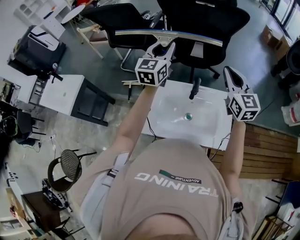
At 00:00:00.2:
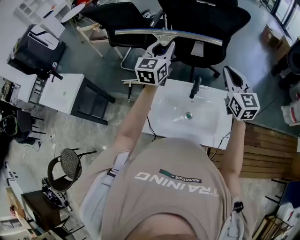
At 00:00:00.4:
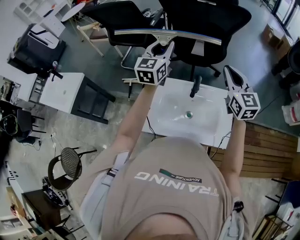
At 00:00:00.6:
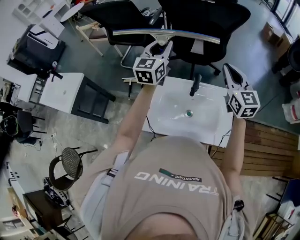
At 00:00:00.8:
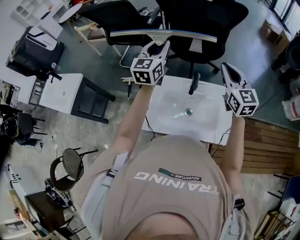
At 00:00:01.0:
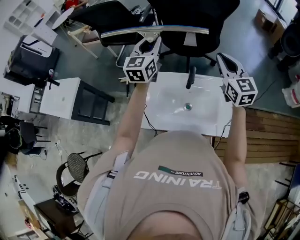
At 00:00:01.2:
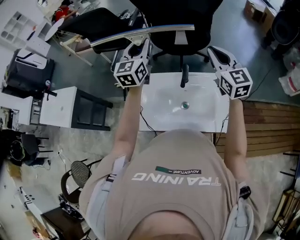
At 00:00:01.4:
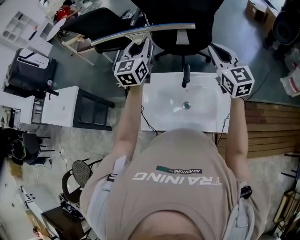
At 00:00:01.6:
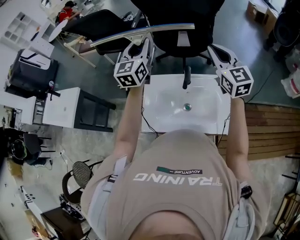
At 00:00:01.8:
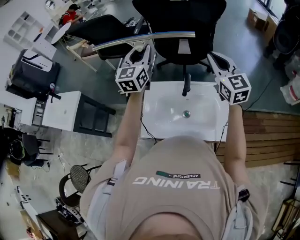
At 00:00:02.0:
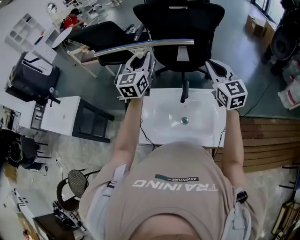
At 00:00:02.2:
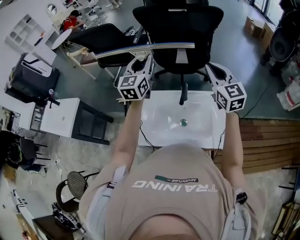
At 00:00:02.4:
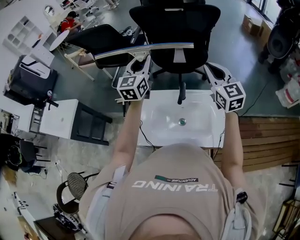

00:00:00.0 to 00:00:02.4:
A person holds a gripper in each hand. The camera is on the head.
00:00:00.0 to 00:00:02.4: The grippers stay close to where they were, moving slightly.

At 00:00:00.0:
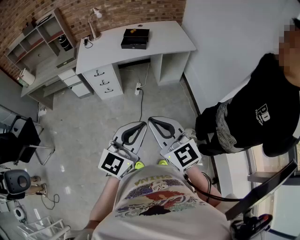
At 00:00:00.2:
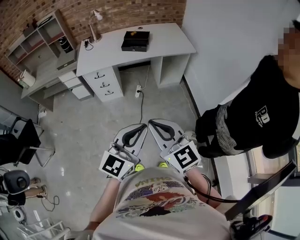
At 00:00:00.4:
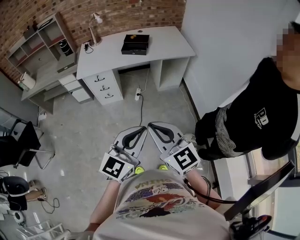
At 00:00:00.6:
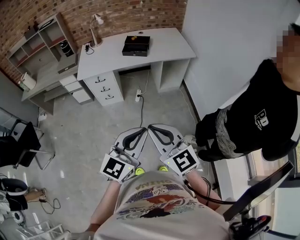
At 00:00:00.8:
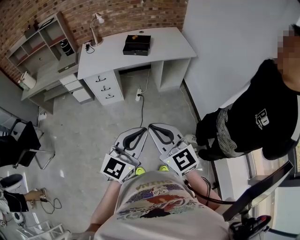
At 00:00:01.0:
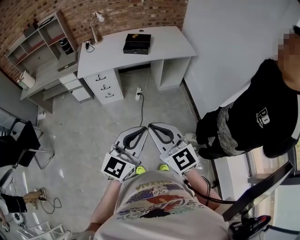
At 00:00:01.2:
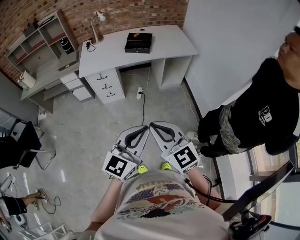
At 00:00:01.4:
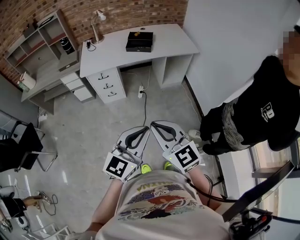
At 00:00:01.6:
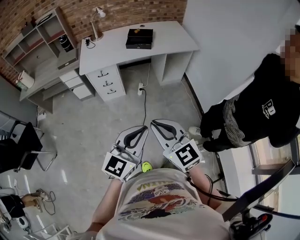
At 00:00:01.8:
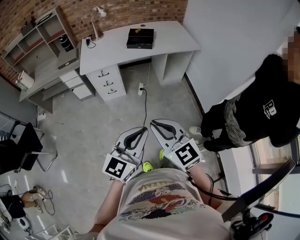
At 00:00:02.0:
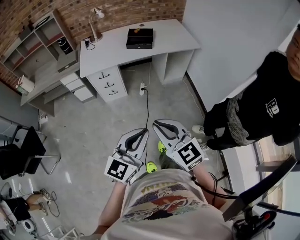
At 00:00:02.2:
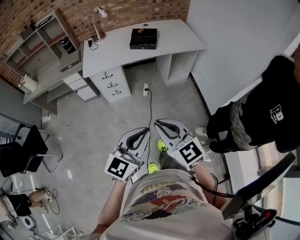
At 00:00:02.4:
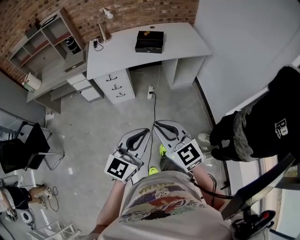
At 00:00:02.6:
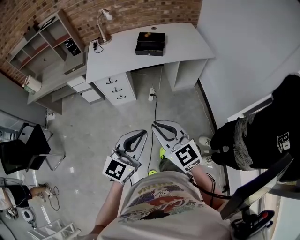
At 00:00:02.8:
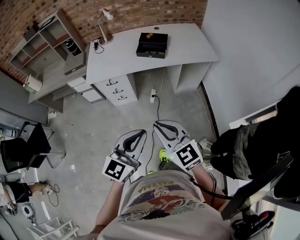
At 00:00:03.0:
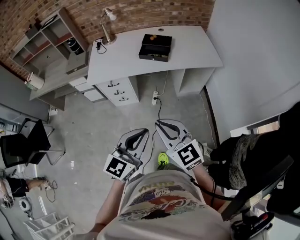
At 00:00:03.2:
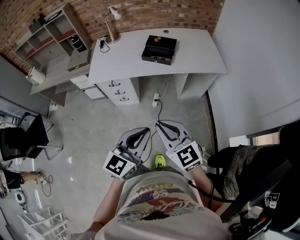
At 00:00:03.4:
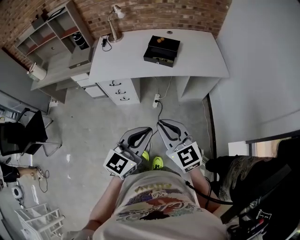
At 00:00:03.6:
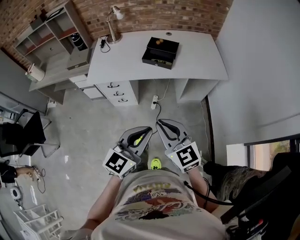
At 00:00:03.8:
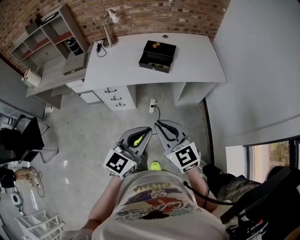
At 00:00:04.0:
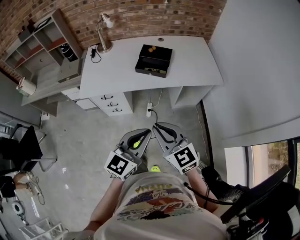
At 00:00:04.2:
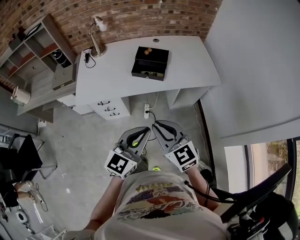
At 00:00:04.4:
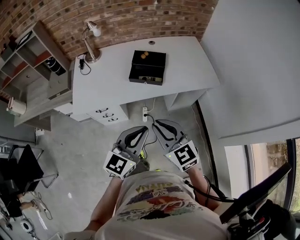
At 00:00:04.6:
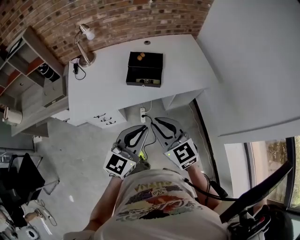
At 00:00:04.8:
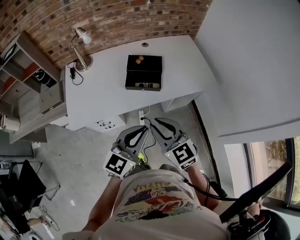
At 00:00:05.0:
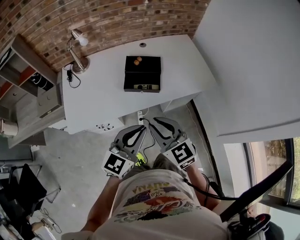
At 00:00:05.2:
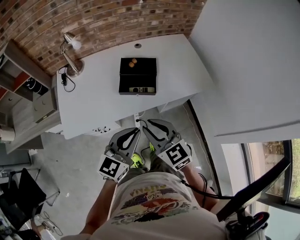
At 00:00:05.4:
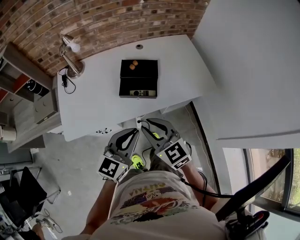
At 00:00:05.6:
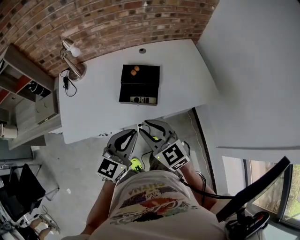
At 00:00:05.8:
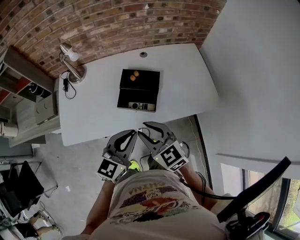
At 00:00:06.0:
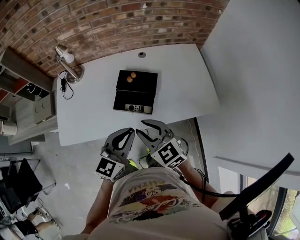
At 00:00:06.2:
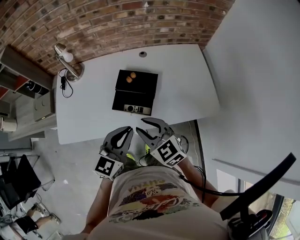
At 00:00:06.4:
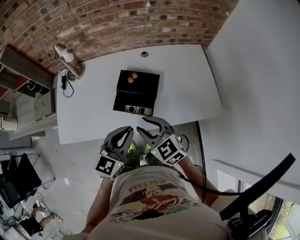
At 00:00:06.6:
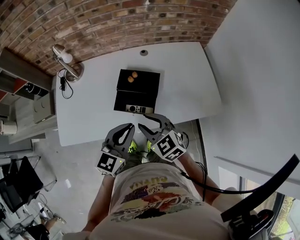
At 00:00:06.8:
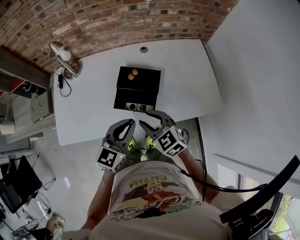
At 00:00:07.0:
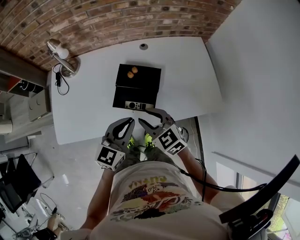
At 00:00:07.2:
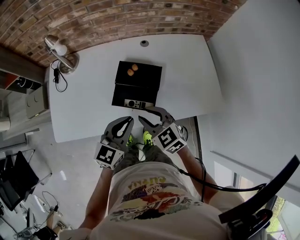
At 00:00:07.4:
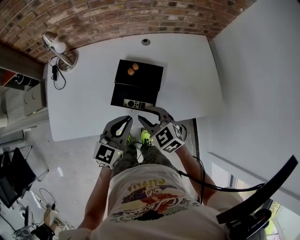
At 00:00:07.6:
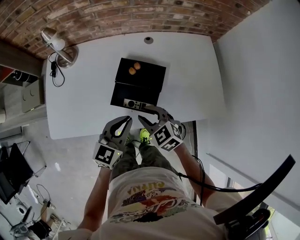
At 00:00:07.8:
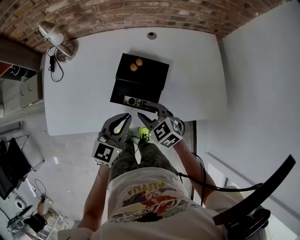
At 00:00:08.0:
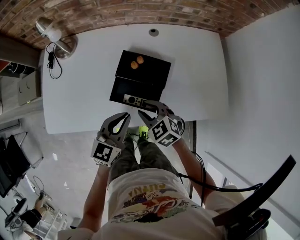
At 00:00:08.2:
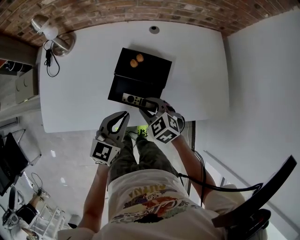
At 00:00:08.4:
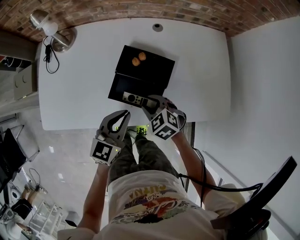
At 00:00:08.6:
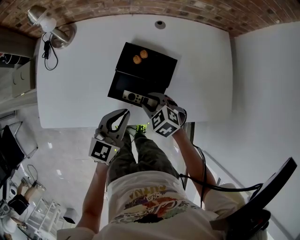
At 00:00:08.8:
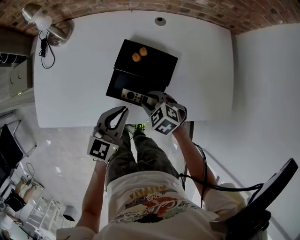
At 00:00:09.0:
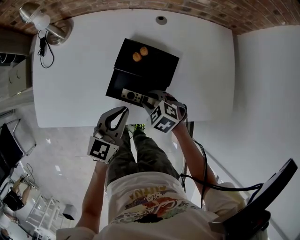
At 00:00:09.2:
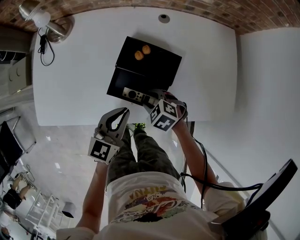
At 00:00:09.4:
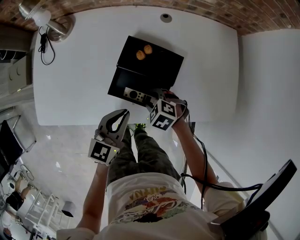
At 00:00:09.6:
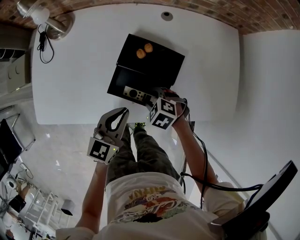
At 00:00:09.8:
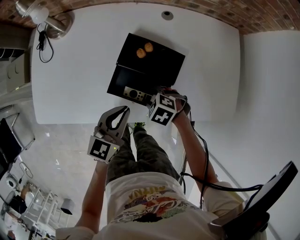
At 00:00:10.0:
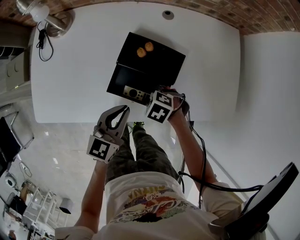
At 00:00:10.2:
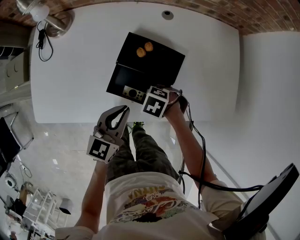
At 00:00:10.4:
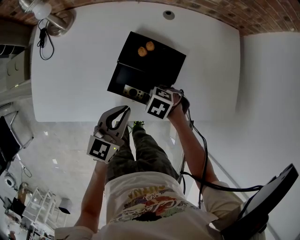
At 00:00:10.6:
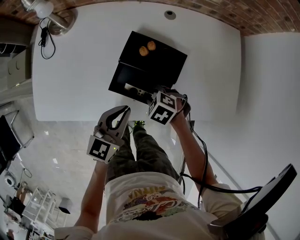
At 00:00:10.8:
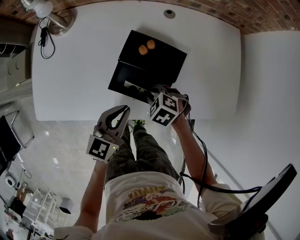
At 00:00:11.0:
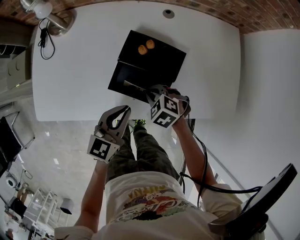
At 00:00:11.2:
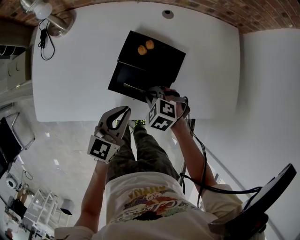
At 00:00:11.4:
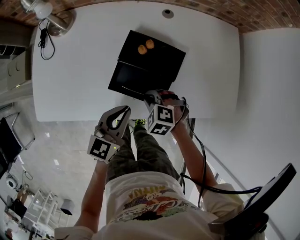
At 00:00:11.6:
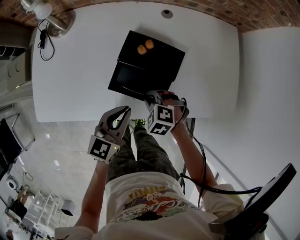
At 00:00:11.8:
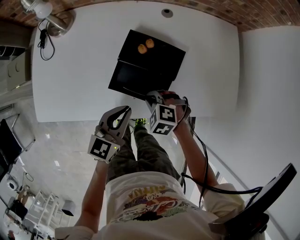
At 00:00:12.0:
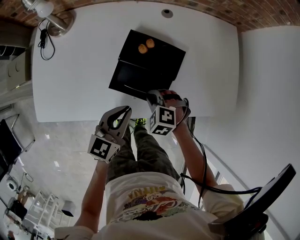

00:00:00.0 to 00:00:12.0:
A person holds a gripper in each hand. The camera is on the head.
00:00:00.0 to 00:00:01.6: The two grippers go roughly 10 cm to the left.
00:00:01.6 to 00:00:03.0: Both grippers travel together forward, approximately 20 cm.
00:00:03.0 to 00:00:04.4: Both grippers travel together forward, some 25 cm.
00:00:04.4 to 00:00:06.0: Both grippers move forward, some 25 cm.
00:00:06.0 to 00:00:07.6: The left gripper goes about 10 cm forward and downward. The right gripper moves downward and forward, about 15 cm.
00:00:07.6 to 00:00:09.0: The left gripper moves downward, about 5 cm. Meanwhile the right gripper moves downward, some 15 cm, and swivels approximately 30 degrees.
00:00:09.0 to 00:00:10.4: The right gripper turns by about 20 degrees.
00:00:10.4 to 00:00:12.0: The right gripper turns by approximately 30 degrees, and closes its fingers.

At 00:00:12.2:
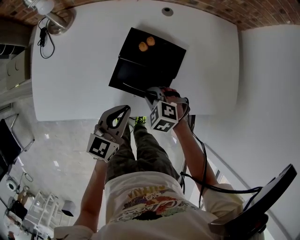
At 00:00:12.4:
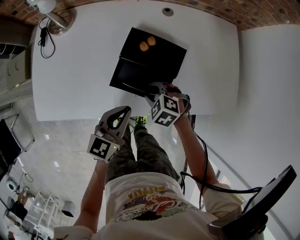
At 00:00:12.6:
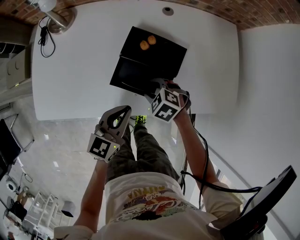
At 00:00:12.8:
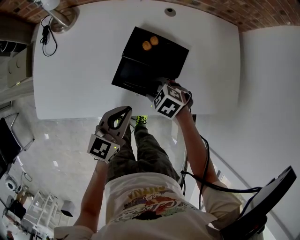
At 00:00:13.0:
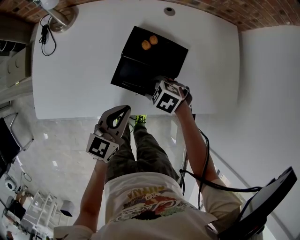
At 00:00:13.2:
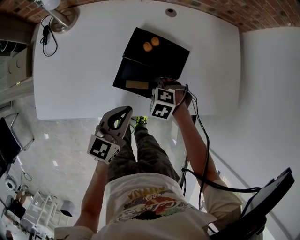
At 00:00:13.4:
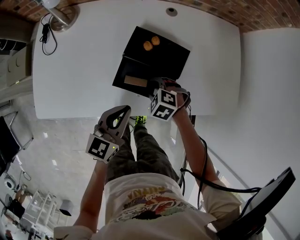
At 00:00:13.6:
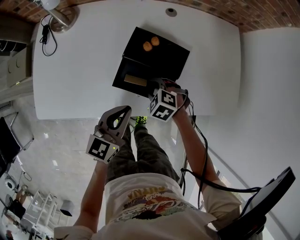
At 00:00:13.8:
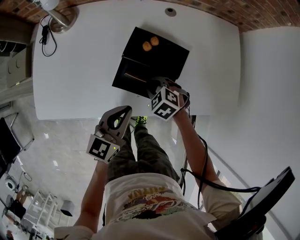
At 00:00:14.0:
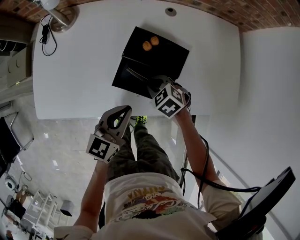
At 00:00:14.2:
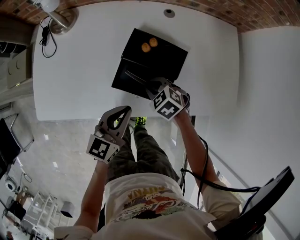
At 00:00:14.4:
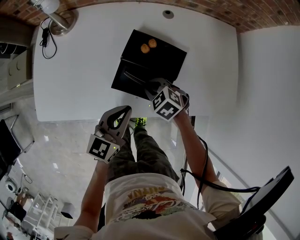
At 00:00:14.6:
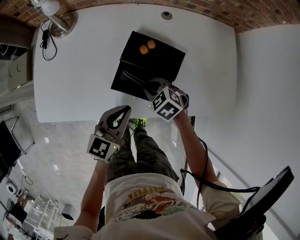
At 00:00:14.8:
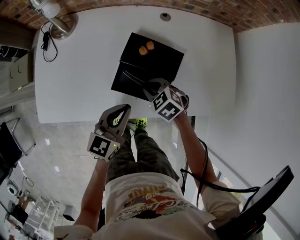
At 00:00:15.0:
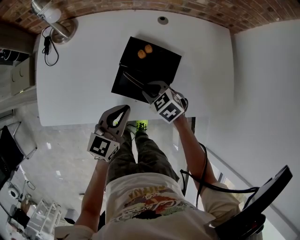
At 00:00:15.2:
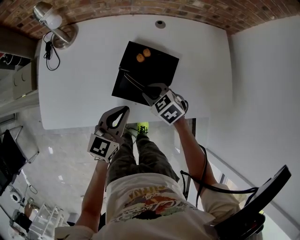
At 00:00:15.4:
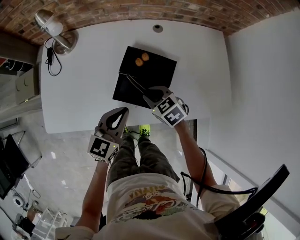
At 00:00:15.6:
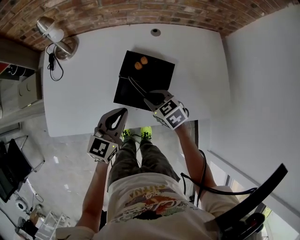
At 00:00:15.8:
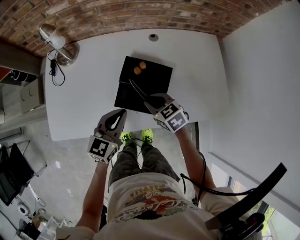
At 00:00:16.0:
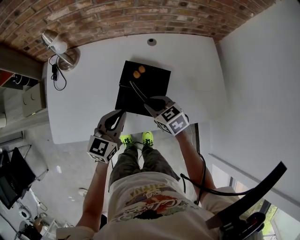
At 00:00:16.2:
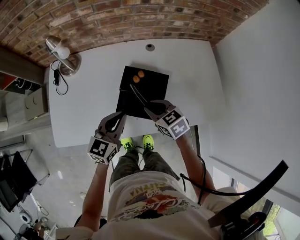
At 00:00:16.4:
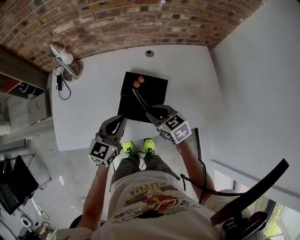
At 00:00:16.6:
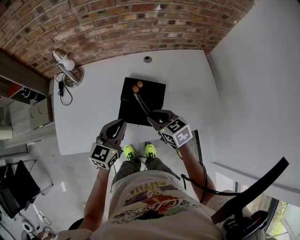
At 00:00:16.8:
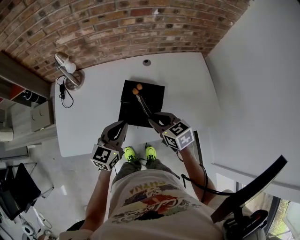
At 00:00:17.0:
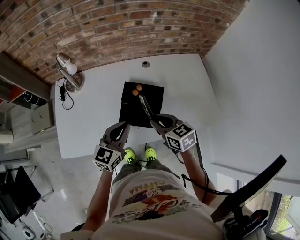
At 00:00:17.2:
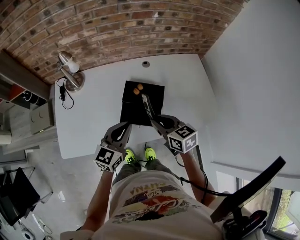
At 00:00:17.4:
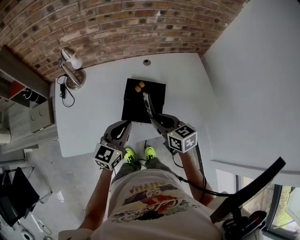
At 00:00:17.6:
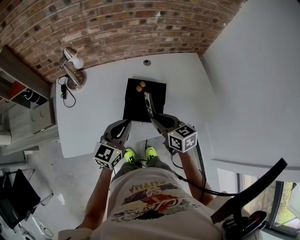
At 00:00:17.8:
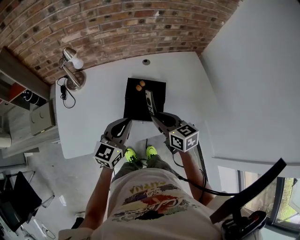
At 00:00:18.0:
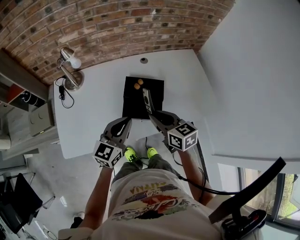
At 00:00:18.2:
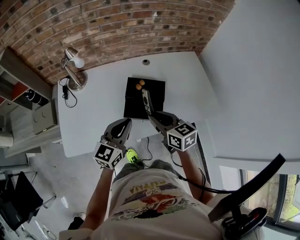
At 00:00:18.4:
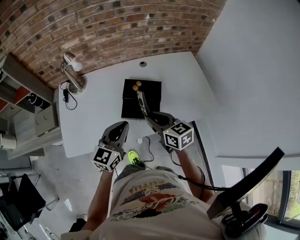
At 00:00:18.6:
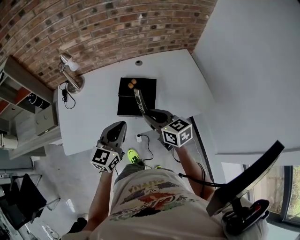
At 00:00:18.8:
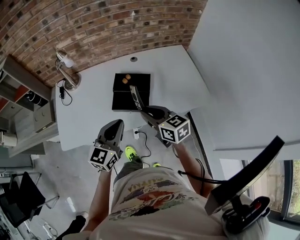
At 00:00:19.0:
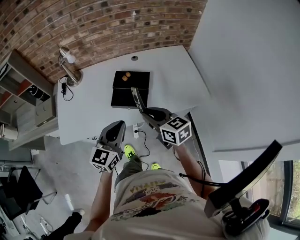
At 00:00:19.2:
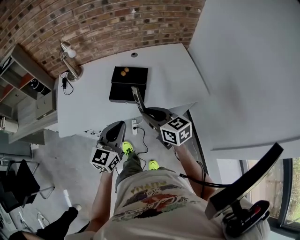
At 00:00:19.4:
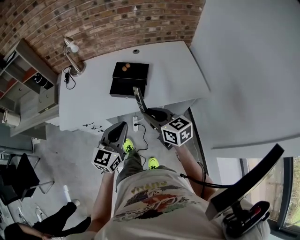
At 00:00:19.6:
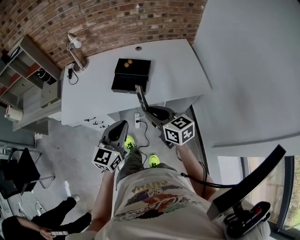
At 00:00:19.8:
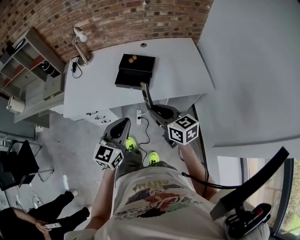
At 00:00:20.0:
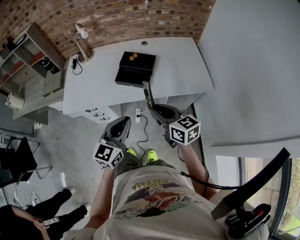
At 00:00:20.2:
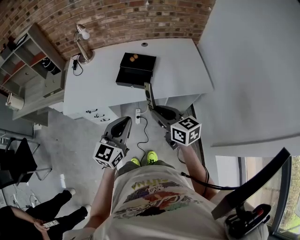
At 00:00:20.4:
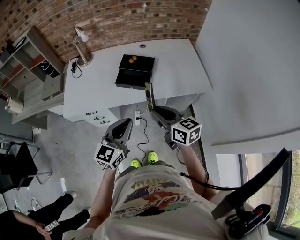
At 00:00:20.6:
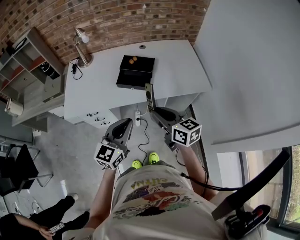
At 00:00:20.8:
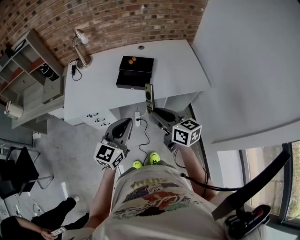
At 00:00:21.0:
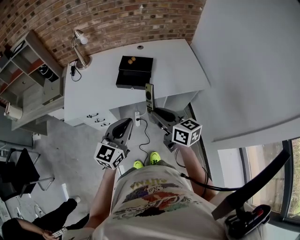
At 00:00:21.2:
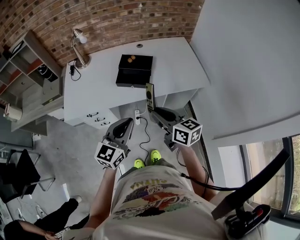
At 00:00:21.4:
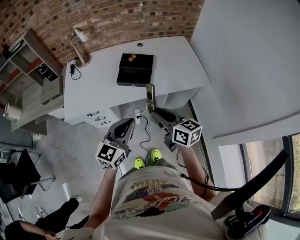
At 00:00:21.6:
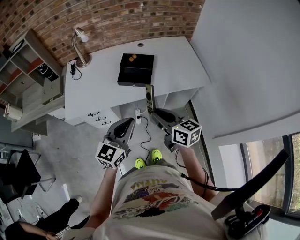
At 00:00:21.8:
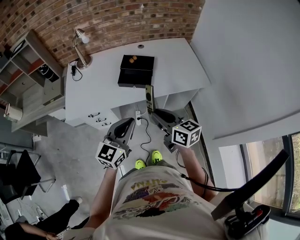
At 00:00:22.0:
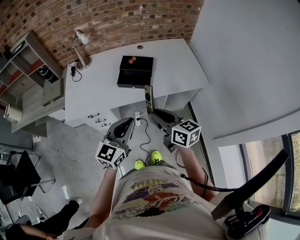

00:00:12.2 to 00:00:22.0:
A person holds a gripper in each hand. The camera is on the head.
00:00:12.2 to 00:00:13.6: The right gripper opens up.
00:00:13.6 to 00:00:15.0: The right gripper goes some 5 cm upward, and rotates some 20 degrees.
00:00:15.0 to 00:00:16.4: The left gripper shifts approximately 5 cm upward. Meanwhile the right gripper travels upward by some 10 cm, and swivels some 30 degrees.
00:00:16.4 to 00:00:17.8: The right gripper travels upward and backward by about 10 cm, and rotates roughly 20 degrees; the left gripper ends up some 5 cm from where it was.
00:00:17.8 to 00:00:19.2: Both grippers move backward and to the right, about 20 cm.
00:00:19.2 to 00:00:20.6: Both grippers travel together backward, roughly 10 cm.
00:00:20.6 to 00:00:22.0: The grippers move only a little.
